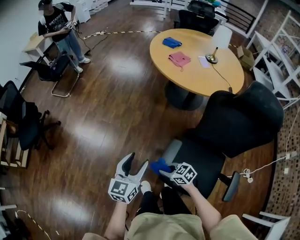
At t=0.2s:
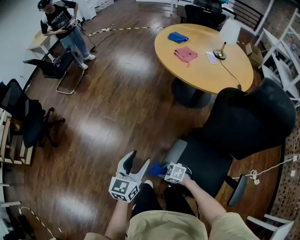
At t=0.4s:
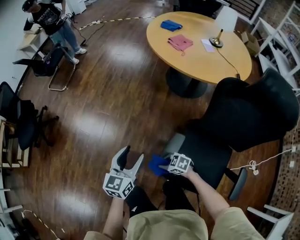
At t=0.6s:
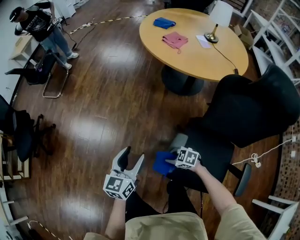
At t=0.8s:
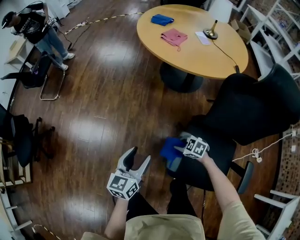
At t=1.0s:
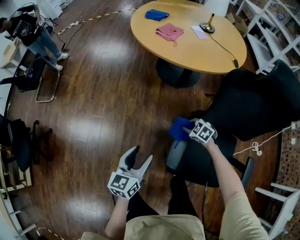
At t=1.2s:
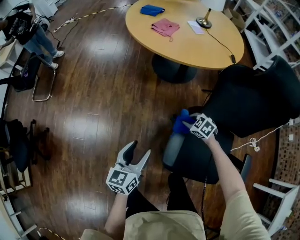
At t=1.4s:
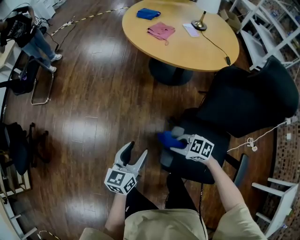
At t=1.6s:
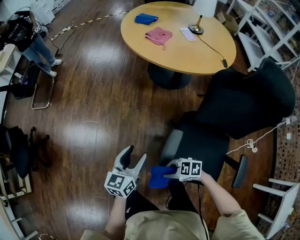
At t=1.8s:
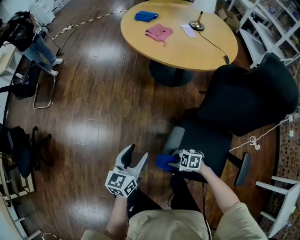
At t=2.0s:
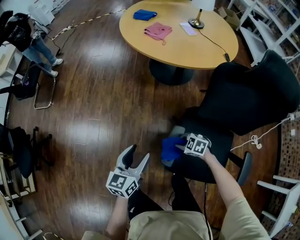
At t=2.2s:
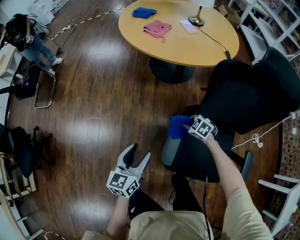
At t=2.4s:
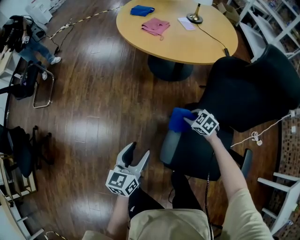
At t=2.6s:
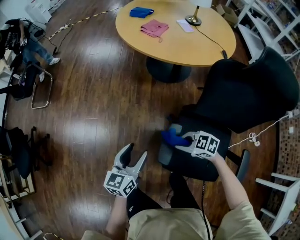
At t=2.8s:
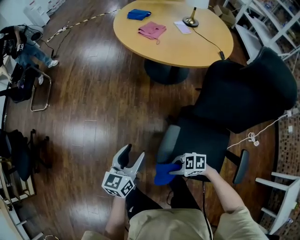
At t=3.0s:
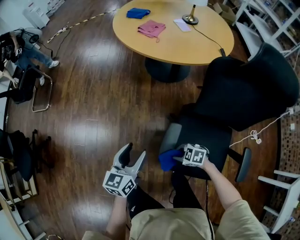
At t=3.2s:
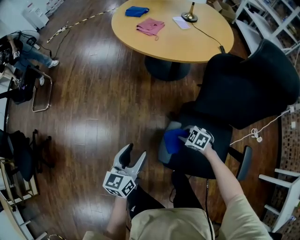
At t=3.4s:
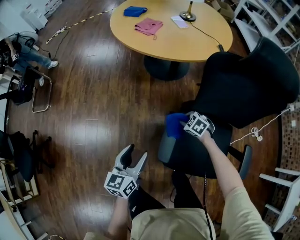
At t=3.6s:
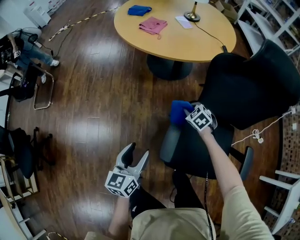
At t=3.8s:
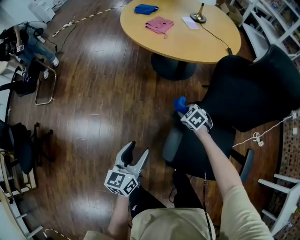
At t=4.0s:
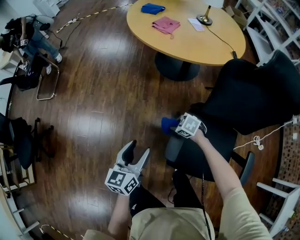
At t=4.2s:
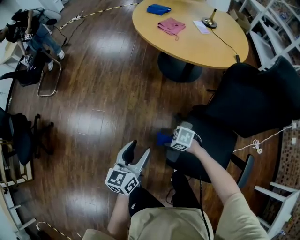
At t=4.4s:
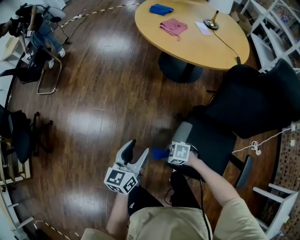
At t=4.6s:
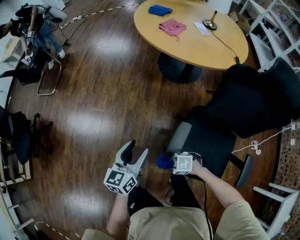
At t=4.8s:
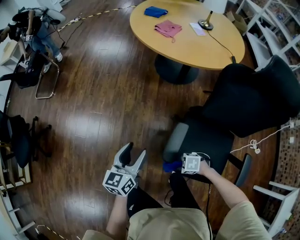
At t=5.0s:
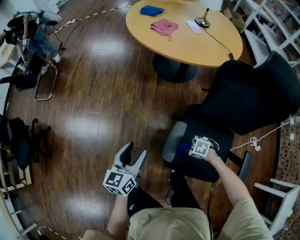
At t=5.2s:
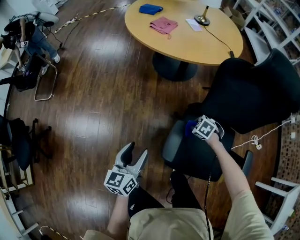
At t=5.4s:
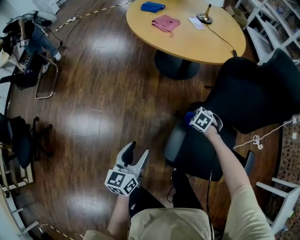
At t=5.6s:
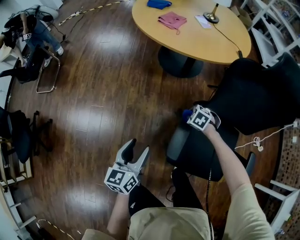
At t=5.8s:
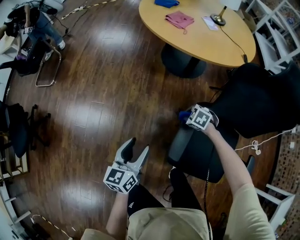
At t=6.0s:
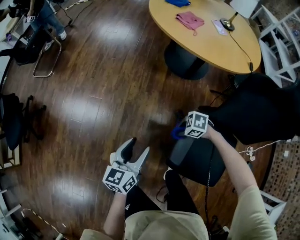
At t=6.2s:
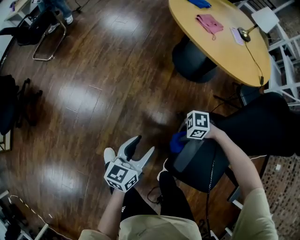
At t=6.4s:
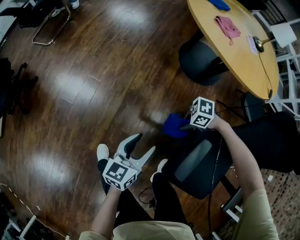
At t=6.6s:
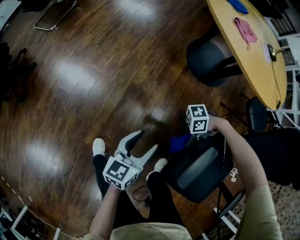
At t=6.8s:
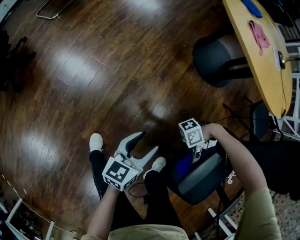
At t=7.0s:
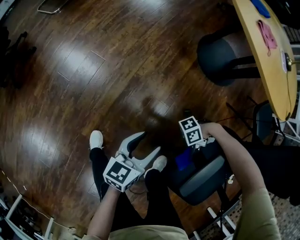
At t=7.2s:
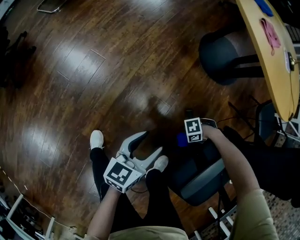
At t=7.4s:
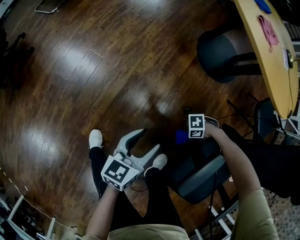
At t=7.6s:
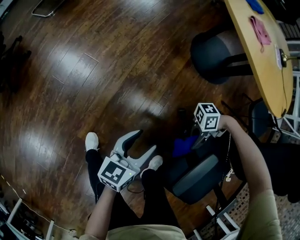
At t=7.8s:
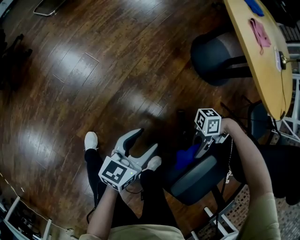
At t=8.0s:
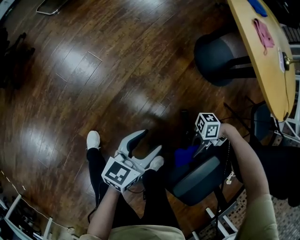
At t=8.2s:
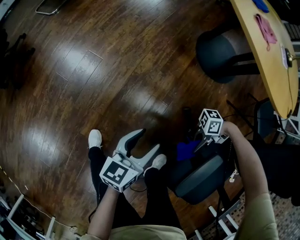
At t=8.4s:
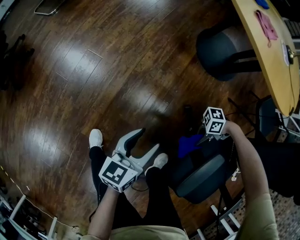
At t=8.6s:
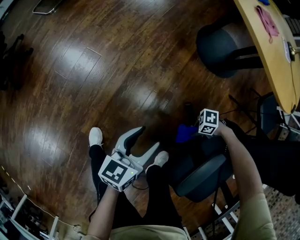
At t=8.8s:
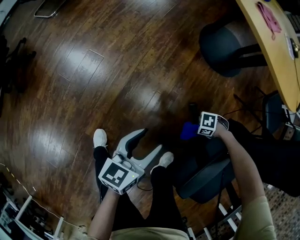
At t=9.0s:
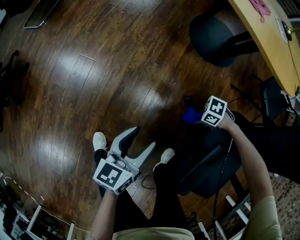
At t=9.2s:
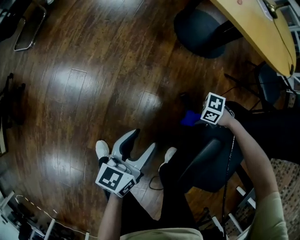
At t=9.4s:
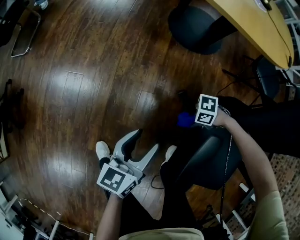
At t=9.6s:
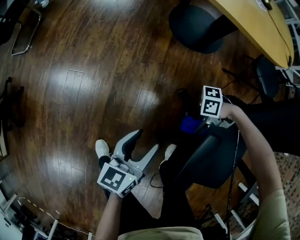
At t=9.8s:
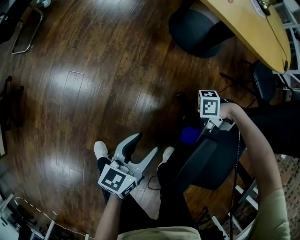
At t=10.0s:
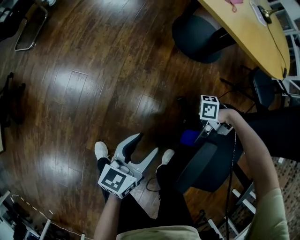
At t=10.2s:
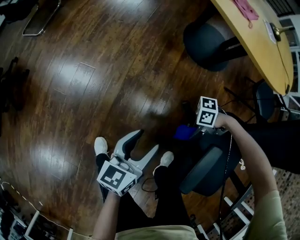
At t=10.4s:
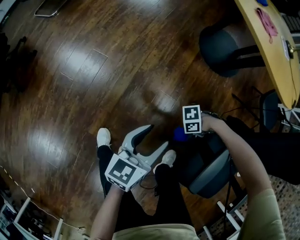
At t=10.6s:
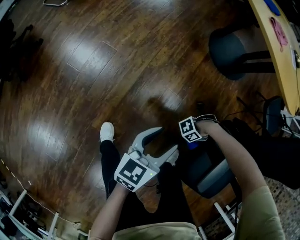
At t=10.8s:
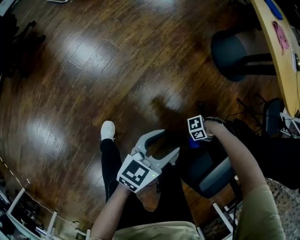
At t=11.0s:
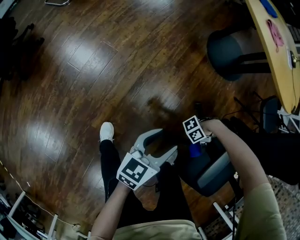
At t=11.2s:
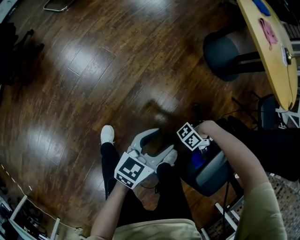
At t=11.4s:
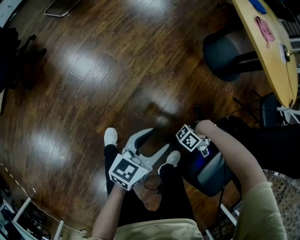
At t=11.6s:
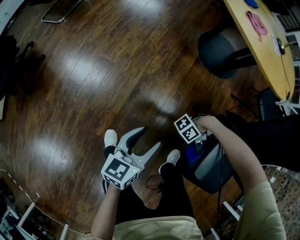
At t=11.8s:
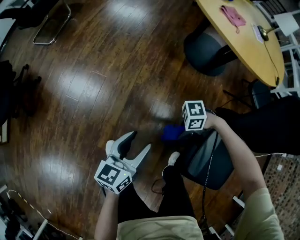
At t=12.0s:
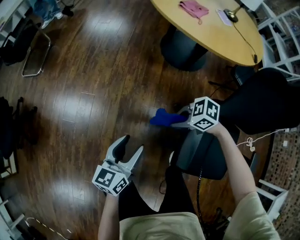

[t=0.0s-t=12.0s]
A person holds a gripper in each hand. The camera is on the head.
t=0.0s to t=1.6s: The left gripper shifts by about 10 cm. The right gripper goes downward and returns, some 10 cm each way, and changes its angle by some 20 degrees.
t=1.6s to t=3.0s: The right gripper swings up and down, approximately 10 cm each way, with 2 reversals.
t=4.4s to t=6.0s: The left gripper changes place by approximately 5 cm.
t=6.0s to t=7.6s: The right gripper goes downward and returns, approximately 25 cm each way, and tilts its fingers about 50 degrees upward. The left gripper travels downward by approximately 15 cm.
t=7.6s to t=9.0s: The right gripper goes up and down, approximately 25 cm each way, reversing 2 times, and angles its fingers downward, by roughly 40 degrees.
t=9.0s to t=10.4s: The right gripper travels upward and back again, roughly 15 cm each way, and swivels about 30 degrees.
t=10.4s to t=12.0s: The right gripper moves up and down over some 25 cm, changing direction 3 times, and turns by roughly 70 degrees. Meanwhile the left gripper moves upward, approximately 10 cm.

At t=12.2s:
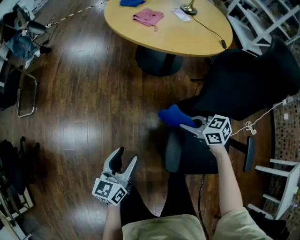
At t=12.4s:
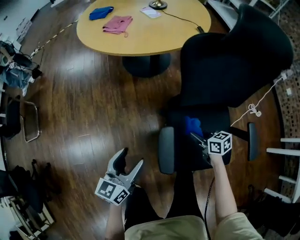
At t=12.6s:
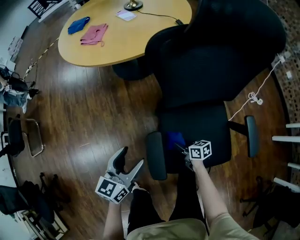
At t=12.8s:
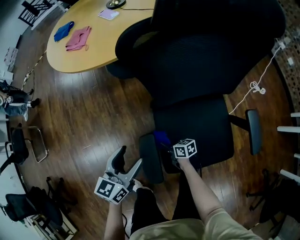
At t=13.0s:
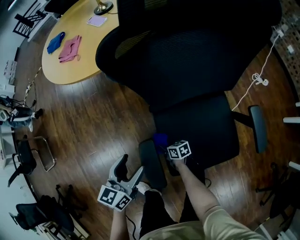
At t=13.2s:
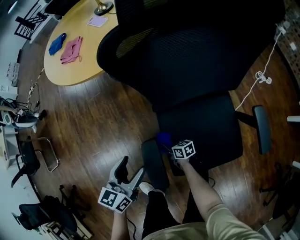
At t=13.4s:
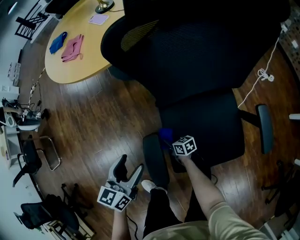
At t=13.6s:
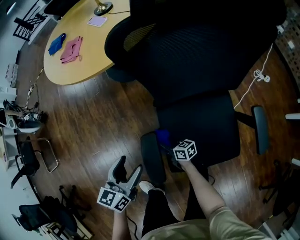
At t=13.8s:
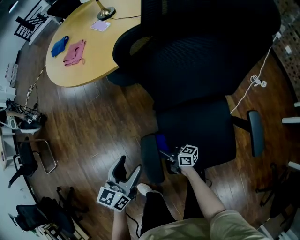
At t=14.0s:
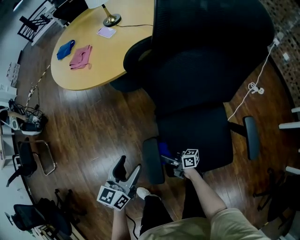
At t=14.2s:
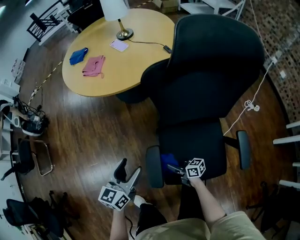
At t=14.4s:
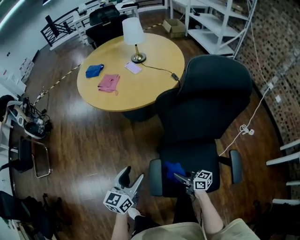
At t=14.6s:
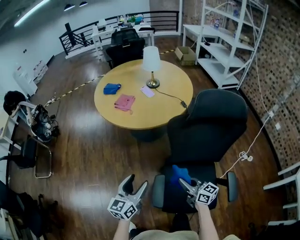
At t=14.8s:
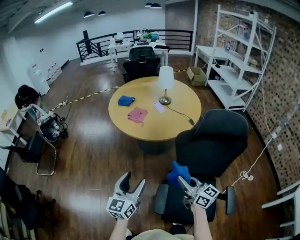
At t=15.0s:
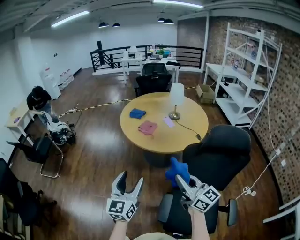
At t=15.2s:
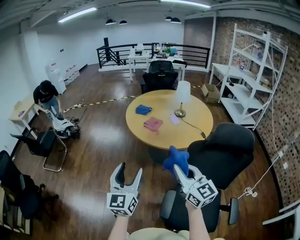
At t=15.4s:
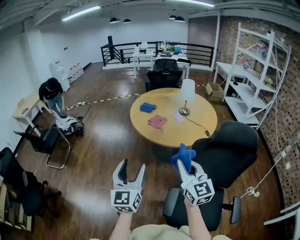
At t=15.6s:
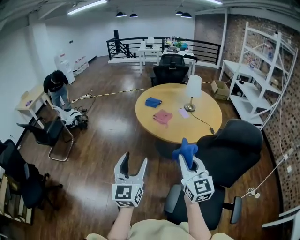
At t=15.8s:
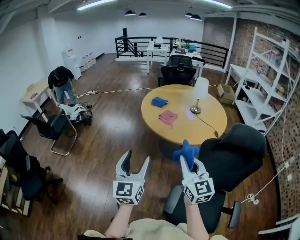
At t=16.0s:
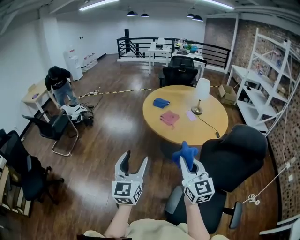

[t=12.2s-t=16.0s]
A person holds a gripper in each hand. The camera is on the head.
t=12.2s to t=13.4s: The left gripper is displaced to the right by approximately 20 cm, and swivels some 30 degrees, while the right gripper heads downward, covering roughly 30 cm, and changes its angle by about 40 degrees.
t=13.4s to t=14.8s: The right gripper heads upward, covering about 60 cm, and angles its fingers upward, by some 30 degrees. The left gripper travels upward by some 30 cm, and changes its angle by some 30 degrees.
t=14.8s to t=16.0s: Both grippers move upward and to the left, roughly 20 cm. The right gripper turns by approximately 30 degrees. The left gripper turns by approximately 30 degrees.

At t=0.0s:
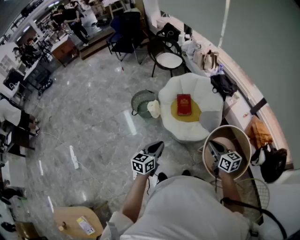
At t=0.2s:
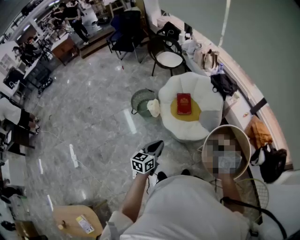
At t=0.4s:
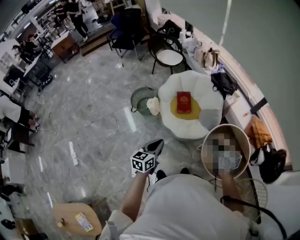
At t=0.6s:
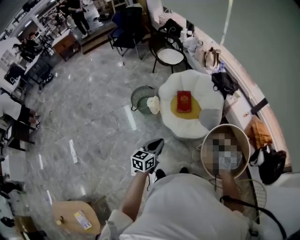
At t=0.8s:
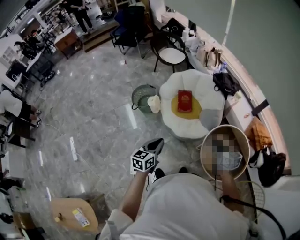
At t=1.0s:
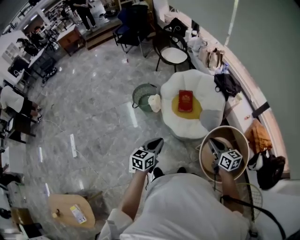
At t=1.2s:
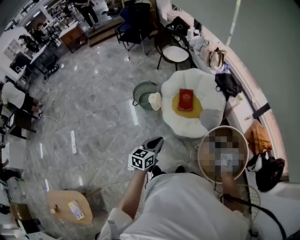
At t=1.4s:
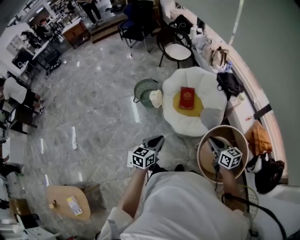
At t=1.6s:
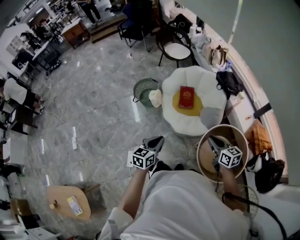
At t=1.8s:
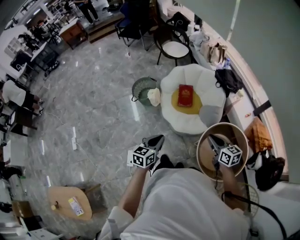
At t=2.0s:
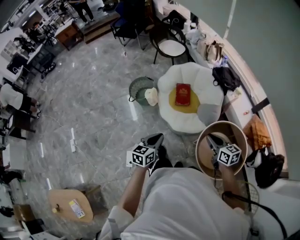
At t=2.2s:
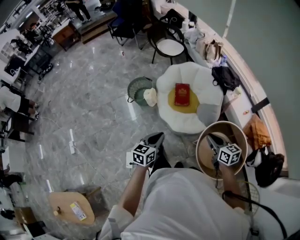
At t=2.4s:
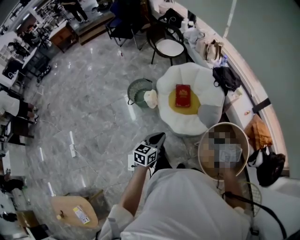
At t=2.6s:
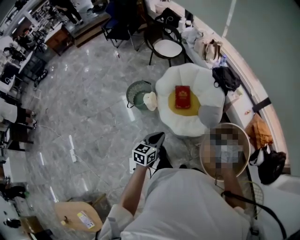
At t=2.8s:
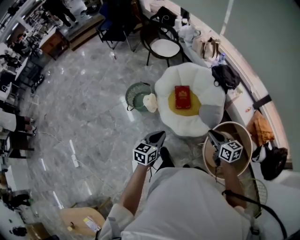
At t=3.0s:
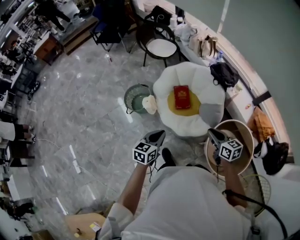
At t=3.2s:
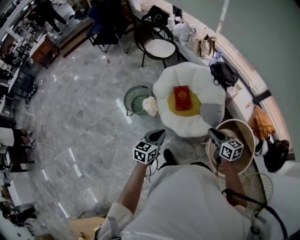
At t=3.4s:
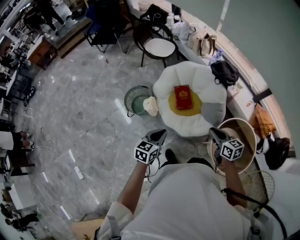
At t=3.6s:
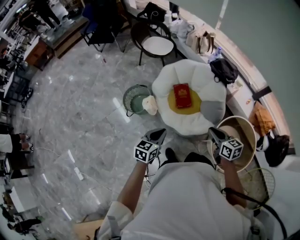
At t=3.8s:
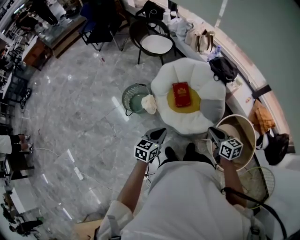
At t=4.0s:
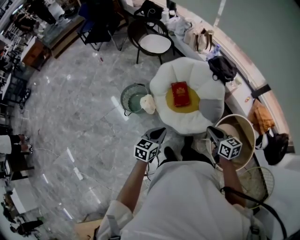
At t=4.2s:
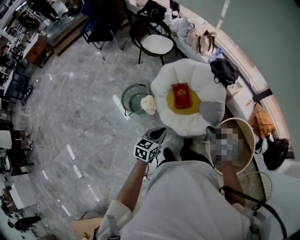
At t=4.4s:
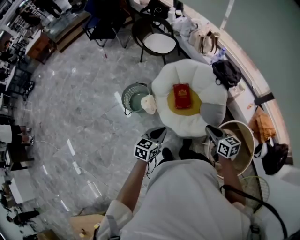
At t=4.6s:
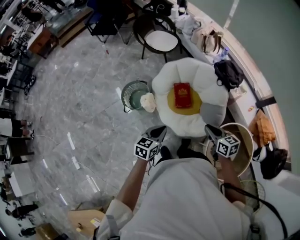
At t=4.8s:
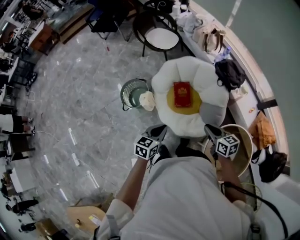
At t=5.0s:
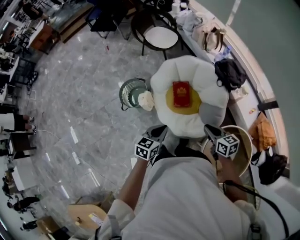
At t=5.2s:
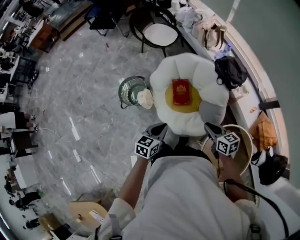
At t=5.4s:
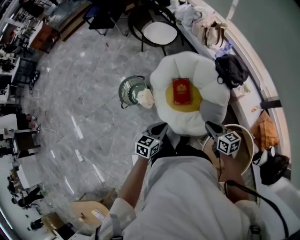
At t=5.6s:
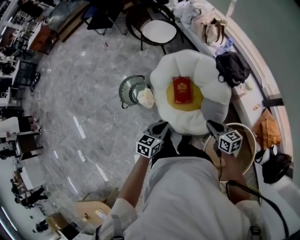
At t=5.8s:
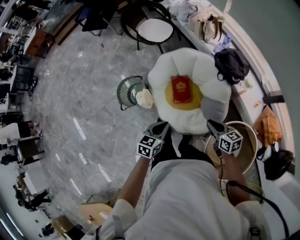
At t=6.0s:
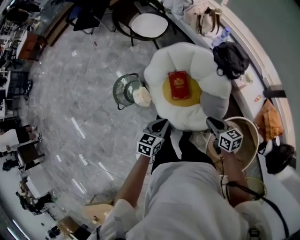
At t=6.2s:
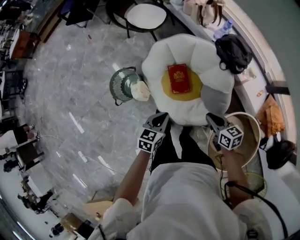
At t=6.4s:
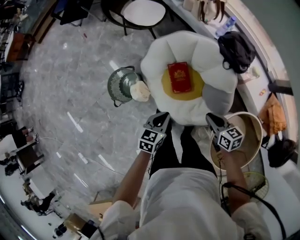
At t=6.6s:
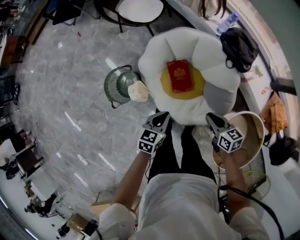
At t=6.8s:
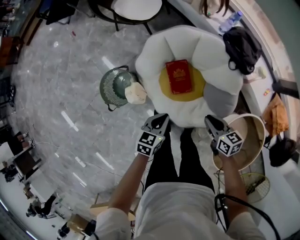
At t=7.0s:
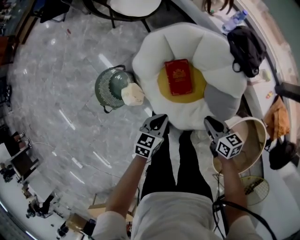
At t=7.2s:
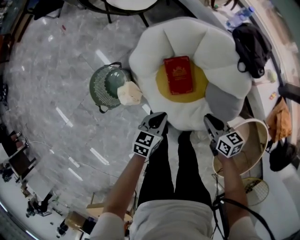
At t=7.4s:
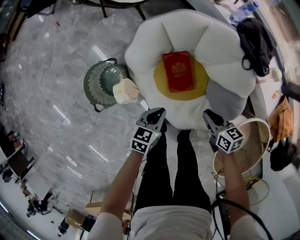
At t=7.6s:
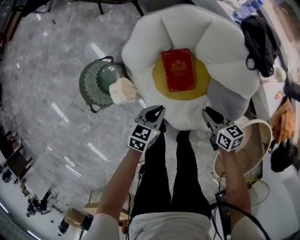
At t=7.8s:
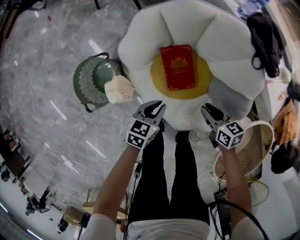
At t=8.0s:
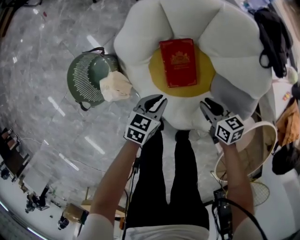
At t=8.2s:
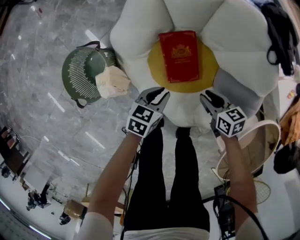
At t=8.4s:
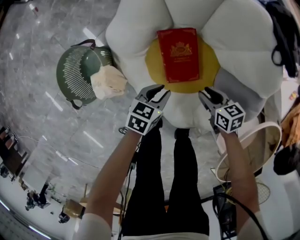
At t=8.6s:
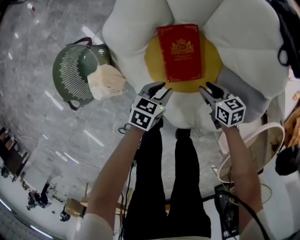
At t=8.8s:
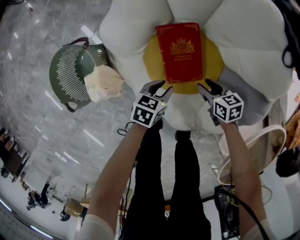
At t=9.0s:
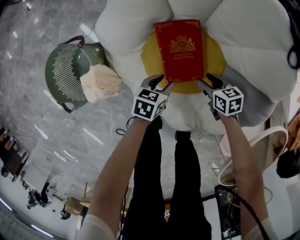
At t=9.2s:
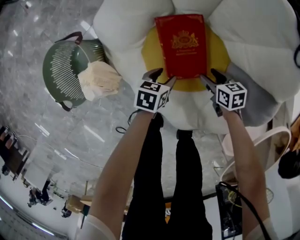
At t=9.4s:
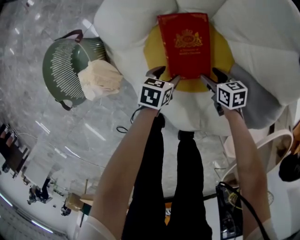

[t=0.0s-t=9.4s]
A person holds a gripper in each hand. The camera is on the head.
t=0.0s to t=1.6s: Both grippers move to the right, some 5 cm.
t=1.6s to t=3.2s: Both grippers move forward and to the left, about 20 cm.
t=3.2s to t=4.8s: The left gripper heads forward and to the right, covering roughly 10 cm. Meanwhile the right gripper travels forward and downward by approximately 15 cm.
t=4.8s to t=6.2s: The two grippers go some 15 cm forward and downward.
t=6.2s to t=7.8s: The grippers both shift downward by about 35 cm.
t=7.8s to t=9.4s: The two grippers go approximately 30 cm downward. The left gripper opens its fingers. Meanwhile the right gripper opens.
